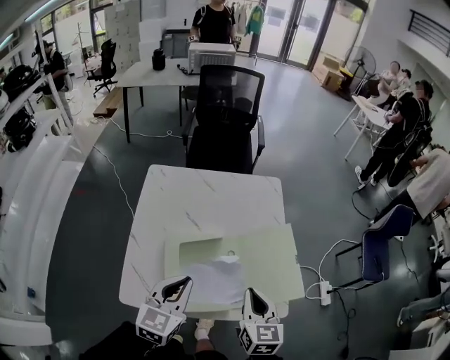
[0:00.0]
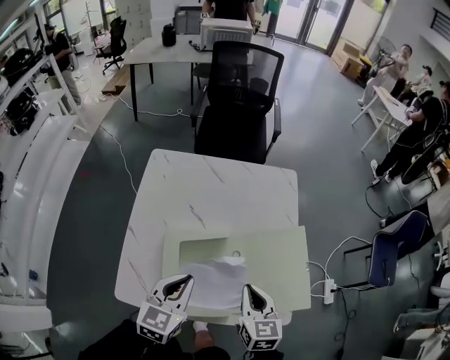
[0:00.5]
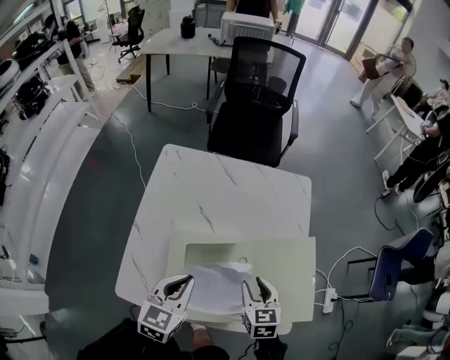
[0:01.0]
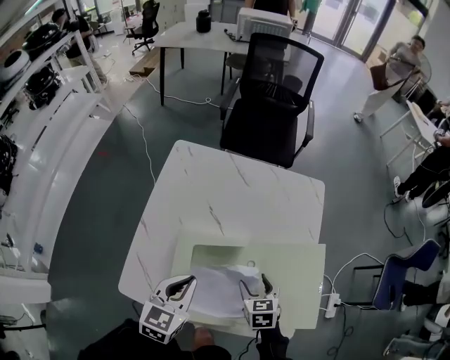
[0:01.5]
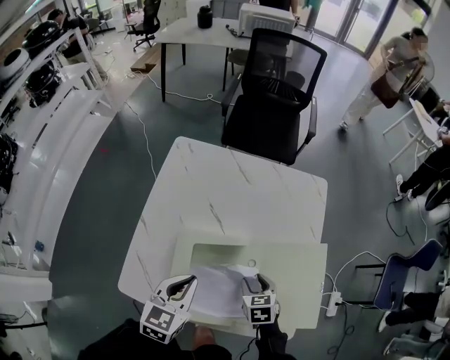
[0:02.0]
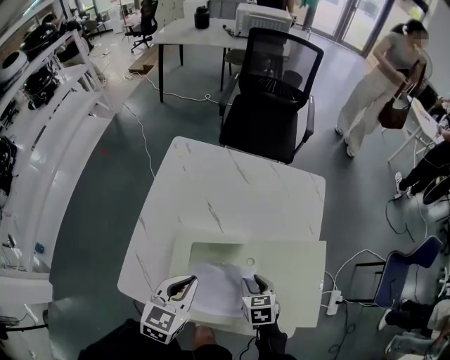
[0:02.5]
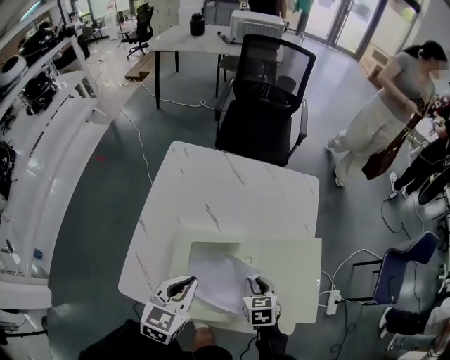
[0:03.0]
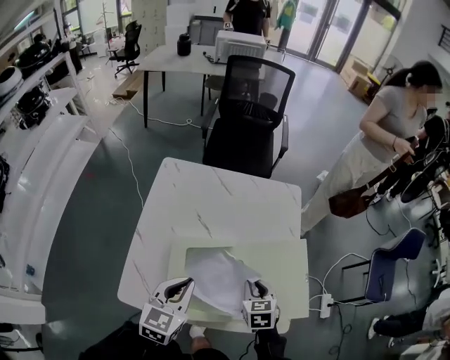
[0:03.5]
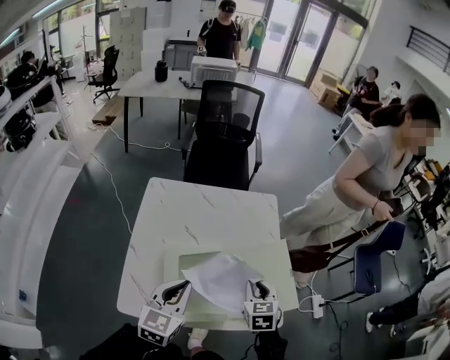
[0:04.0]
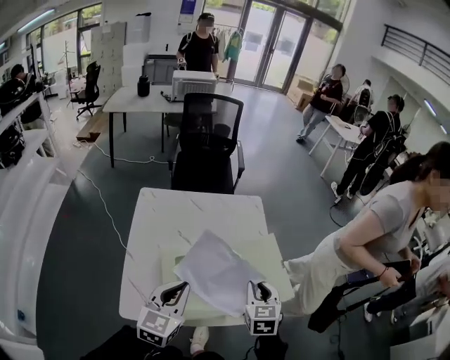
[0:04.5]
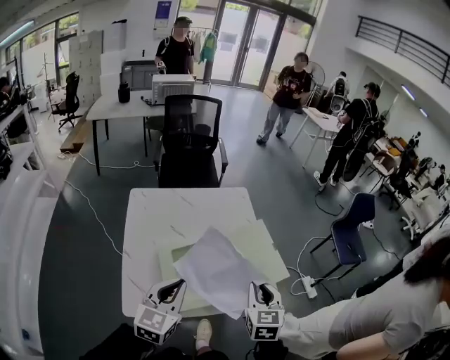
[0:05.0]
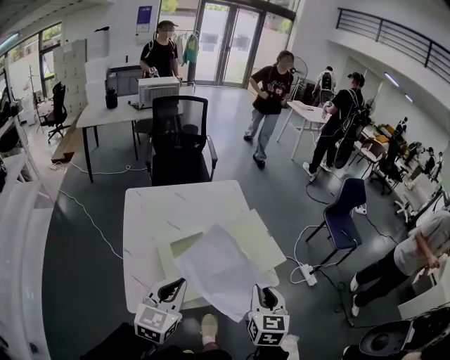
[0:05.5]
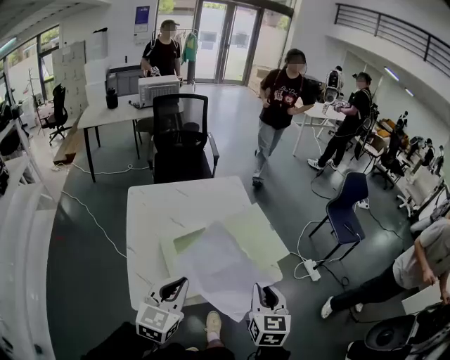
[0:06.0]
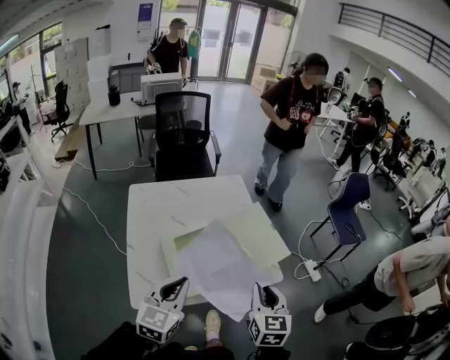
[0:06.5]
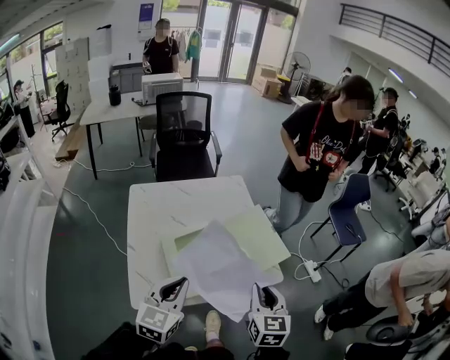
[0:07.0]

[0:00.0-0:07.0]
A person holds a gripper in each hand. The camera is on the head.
0:00.0 to 0:02.0: The right gripper moves downward and forward, roughly 30 cm, turns by about 40 degrees, and opens. Meanwhile the left gripper moves downward and forward, approximately 15 cm.
0:02.0 to 0:03.5: Both grippers move upward, about 10 cm. The right gripper closes up.
0:03.5 to 0:05.0: The left gripper shifts approximately 20 cm backward and upward. The right gripper heads upward and backward, covering approximately 30 cm, and turns by some 30 degrees.
0:05.0 to 0:07.0: The right gripper is displaced backward by some 10 cm, while the left gripper shifts approximately 5 cm backward.

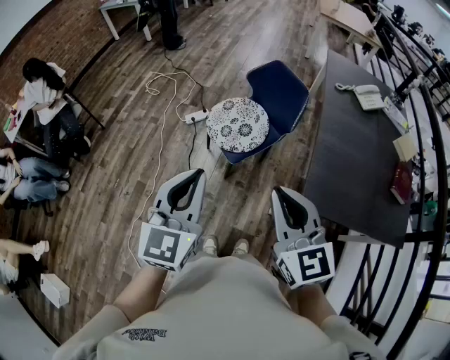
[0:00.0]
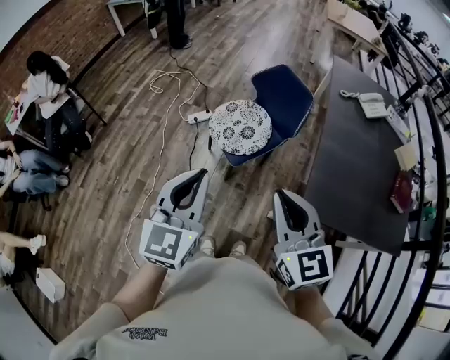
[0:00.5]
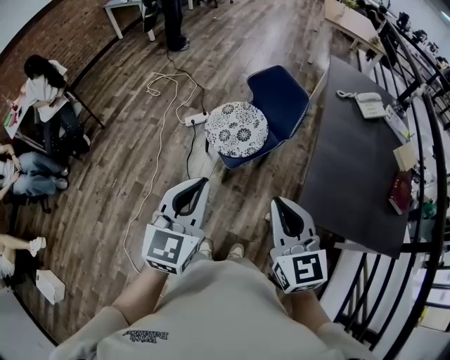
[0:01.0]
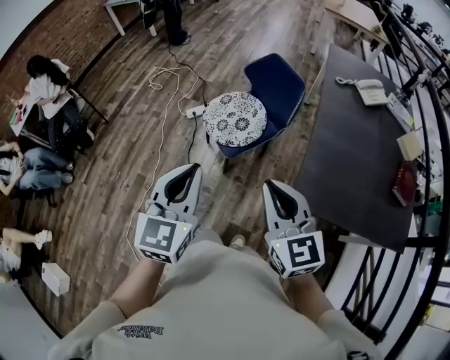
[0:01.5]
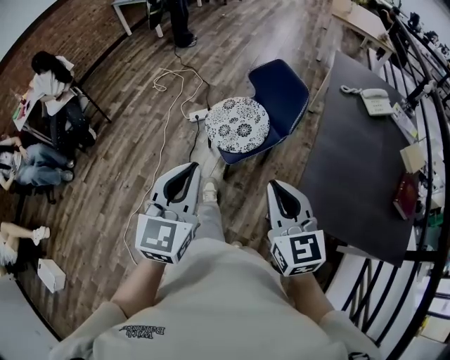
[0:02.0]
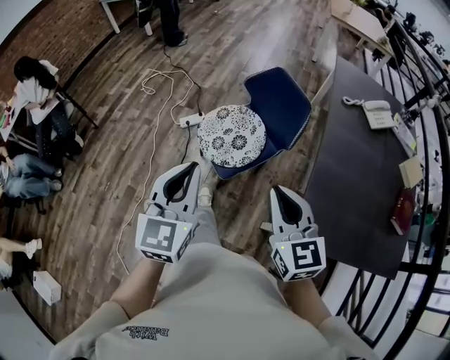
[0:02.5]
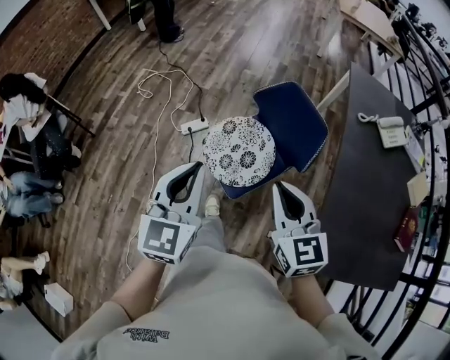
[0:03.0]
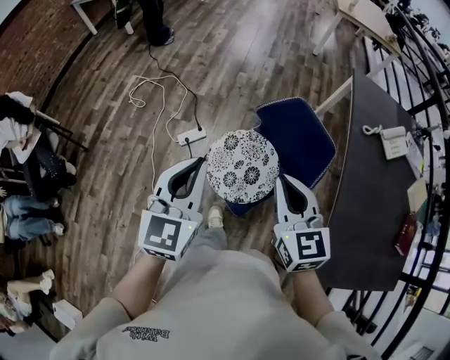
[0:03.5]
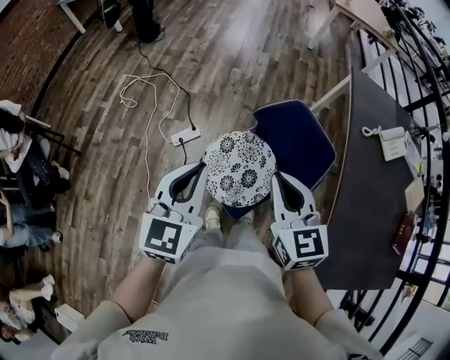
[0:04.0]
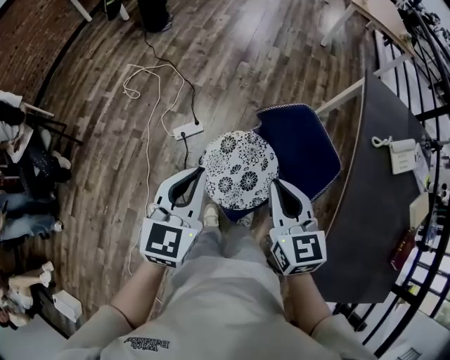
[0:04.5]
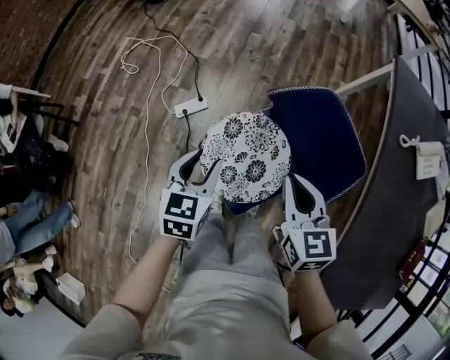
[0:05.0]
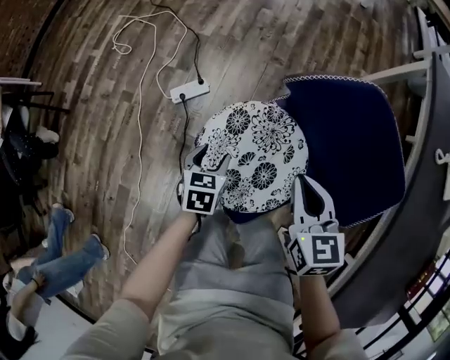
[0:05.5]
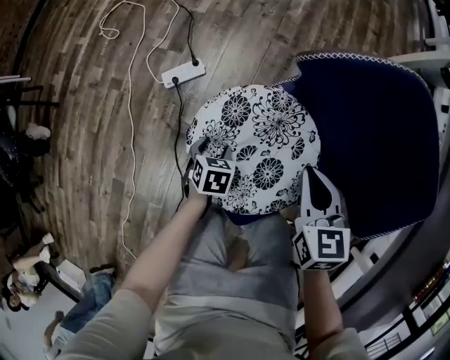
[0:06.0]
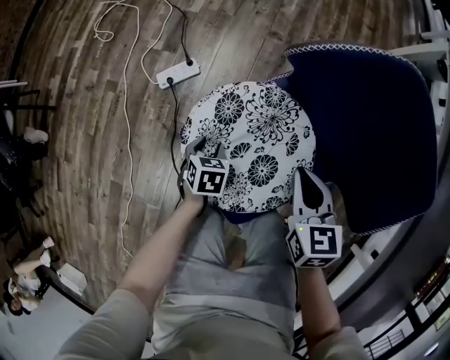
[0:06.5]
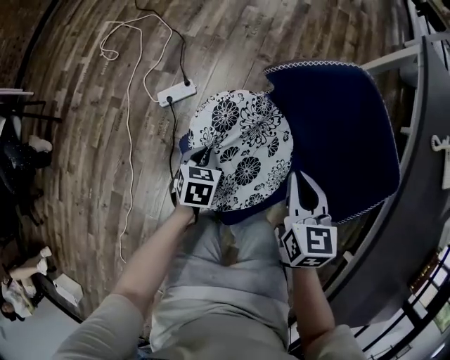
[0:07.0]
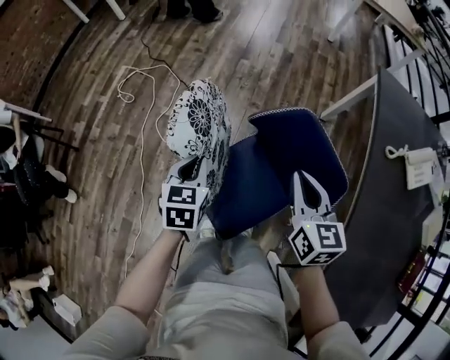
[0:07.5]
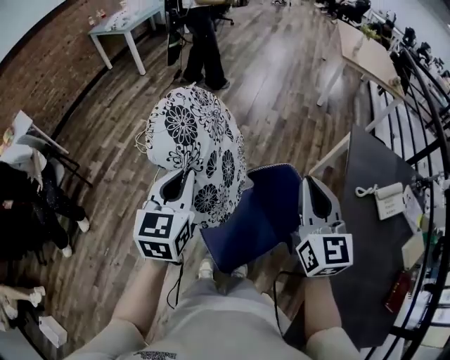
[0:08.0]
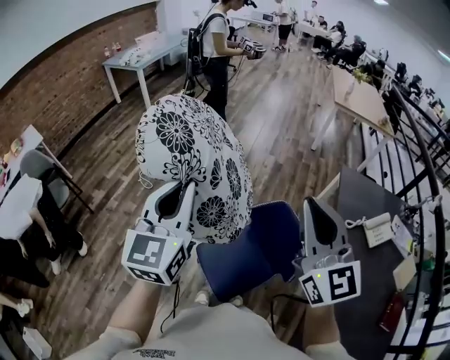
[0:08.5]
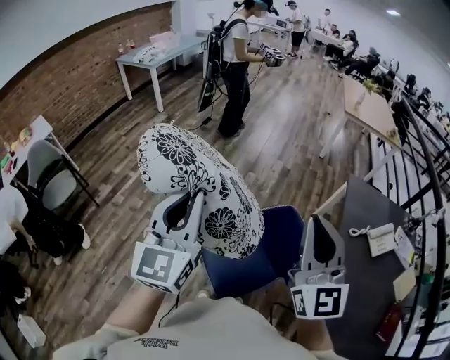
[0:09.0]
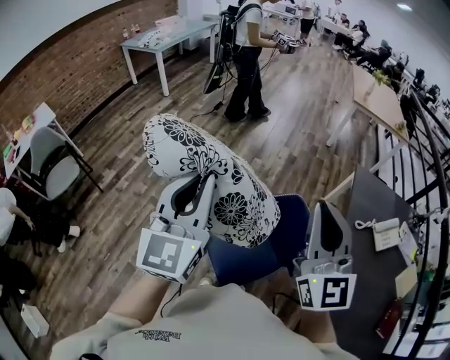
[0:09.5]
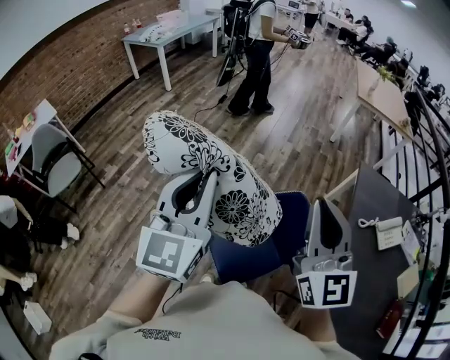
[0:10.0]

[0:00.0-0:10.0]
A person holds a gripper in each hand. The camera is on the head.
0:00.0 to 0:02.0: The right gripper heads to the right and downward, covering about 10 cm; the left gripper goes some 5 cm to the right.
0:02.0 to 0:04.0: The two grippers travel together, forward, some 50 cm.
0:04.0 to 0:06.0: The left gripper travels downward by about 70 cm, angles its fingers downward, by about 50 degrees, and opens up. Meanwhile the right gripper heads downward, covering approximately 50 cm, and swivels some 20 degrees.
0:06.0 to 0:08.0: The grippers both shift upward by approximately 60 cm. The right gripper points its fingers some 40 degrees further upward, while the left gripper angles its fingers upward, by about 50 degrees, and closes up.
0:08.0 to 0:10.0: The left gripper travels upward by roughly 15 cm, and rotates some 20 degrees; the right gripper goes about 15 cm upward, to the left and backward.

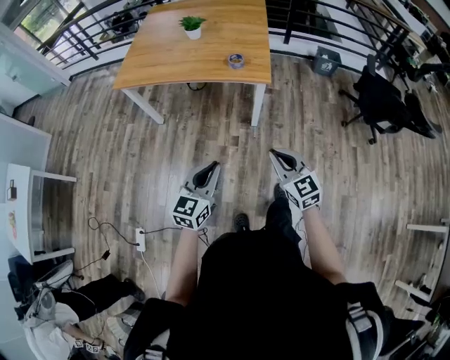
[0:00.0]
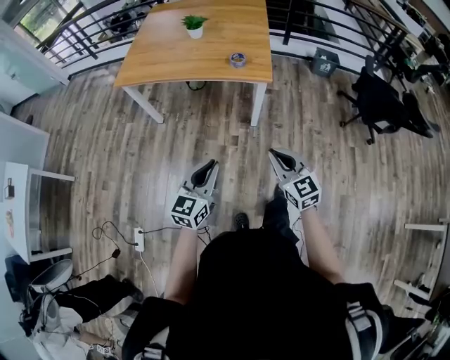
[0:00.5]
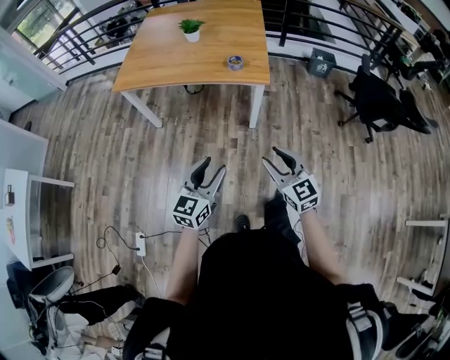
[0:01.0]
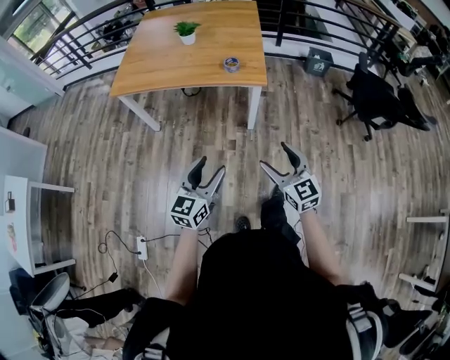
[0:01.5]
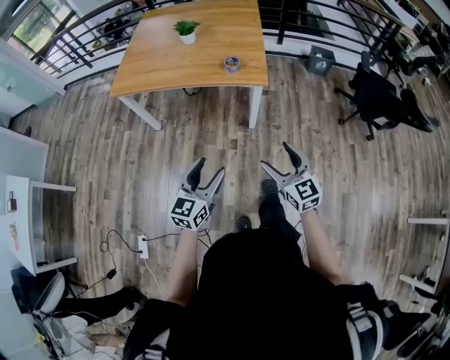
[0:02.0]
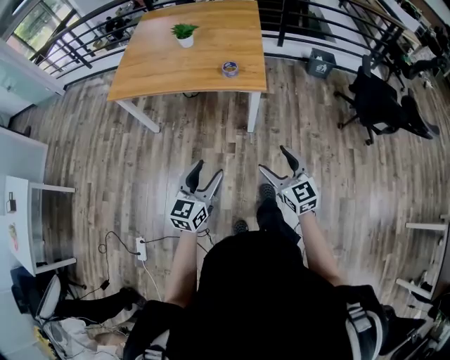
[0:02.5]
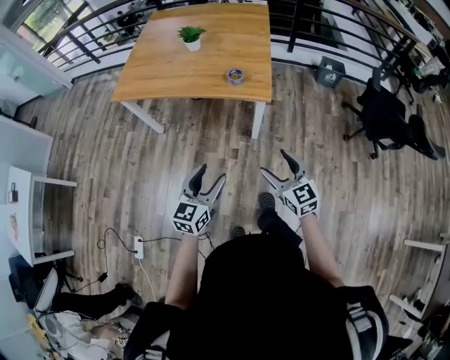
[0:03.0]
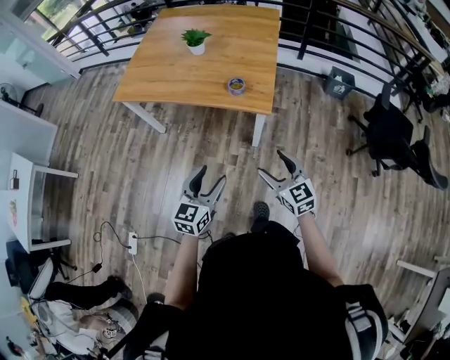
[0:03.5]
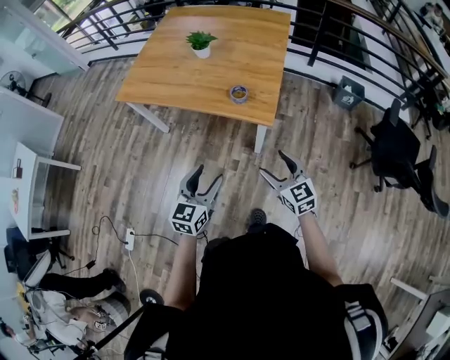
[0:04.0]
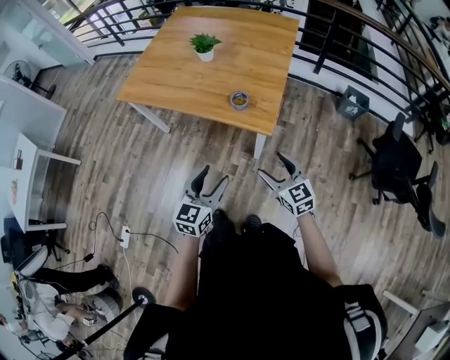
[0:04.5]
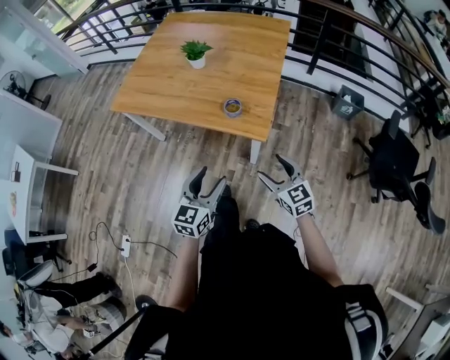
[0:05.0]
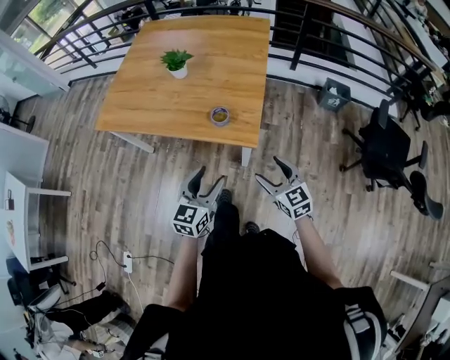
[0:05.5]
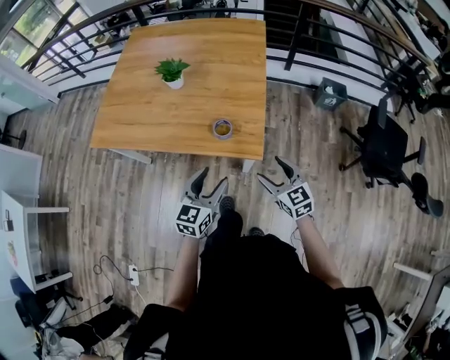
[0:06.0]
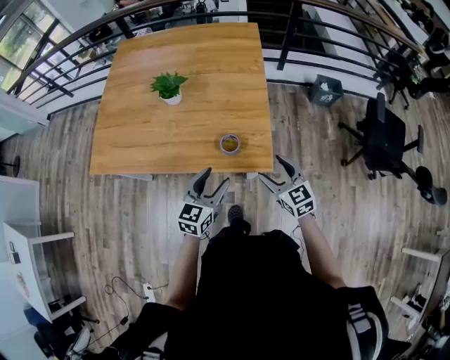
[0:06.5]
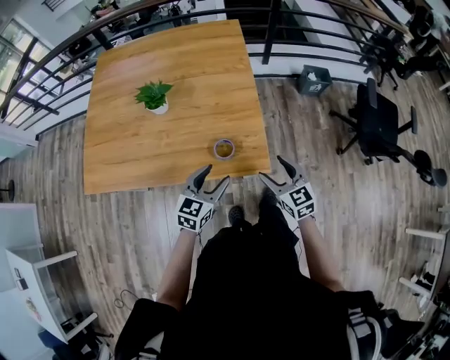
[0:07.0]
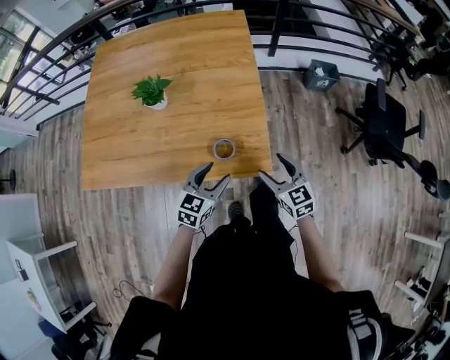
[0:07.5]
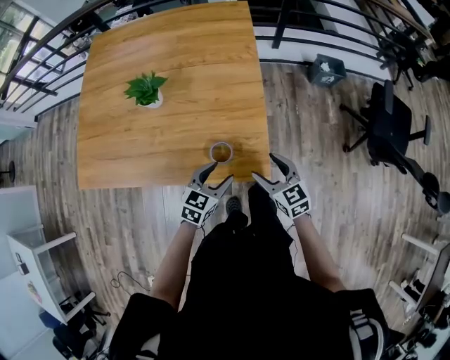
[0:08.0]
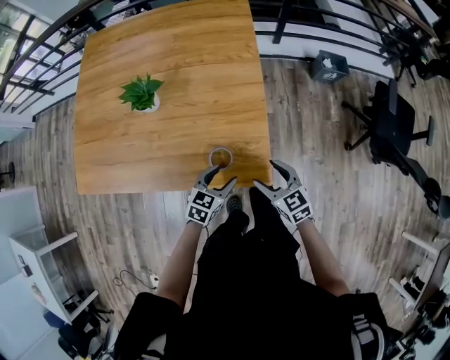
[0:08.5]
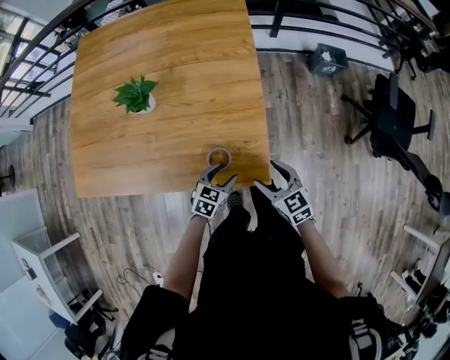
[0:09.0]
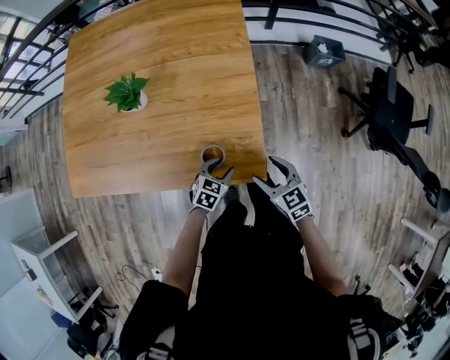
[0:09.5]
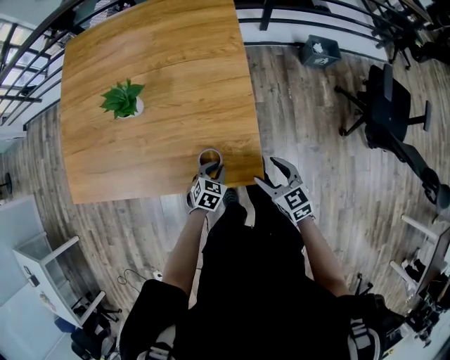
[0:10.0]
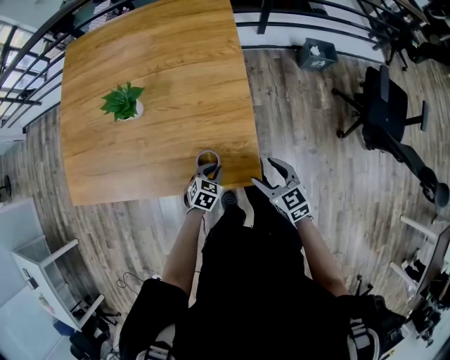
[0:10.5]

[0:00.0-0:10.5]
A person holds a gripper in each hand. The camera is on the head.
0:00.0 to 0:02.0: The right gripper opens; the left gripper opens its fingers.
0:02.0 to 0:04.0: The two grippers go about 20 cm forward and to the right.
0:04.0 to 0:06.5: Both grippers move forward, about 25 cm.
0:06.5 to 0:08.5: The right gripper shifts about 10 cm downward and forward; the left gripper goes roughly 20 cm downward and forward, and rotates about 20 degrees.
0:08.5 to 0:10.5: The left gripper is displaced downward by approximately 10 cm, and closes.
